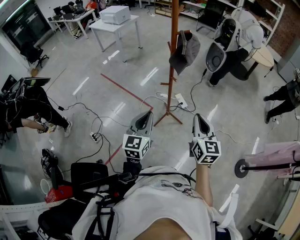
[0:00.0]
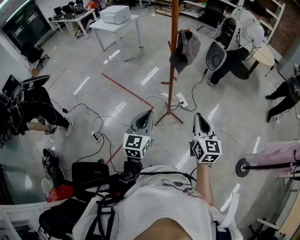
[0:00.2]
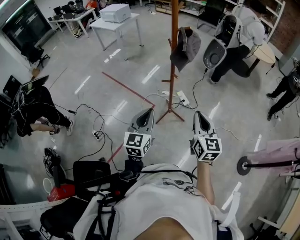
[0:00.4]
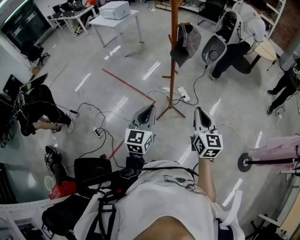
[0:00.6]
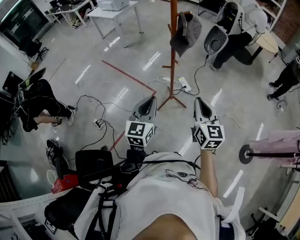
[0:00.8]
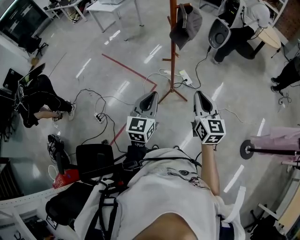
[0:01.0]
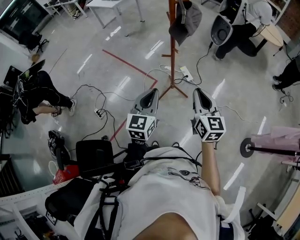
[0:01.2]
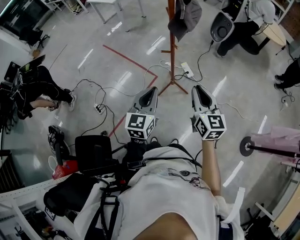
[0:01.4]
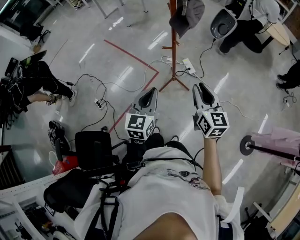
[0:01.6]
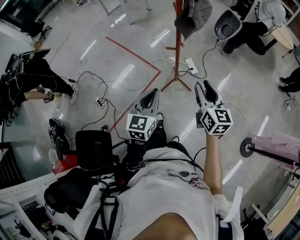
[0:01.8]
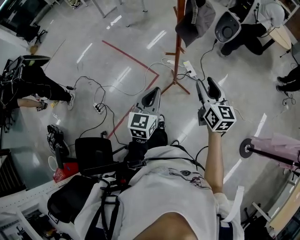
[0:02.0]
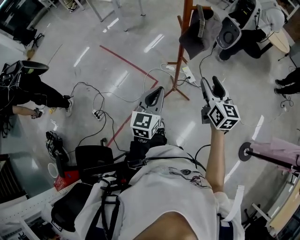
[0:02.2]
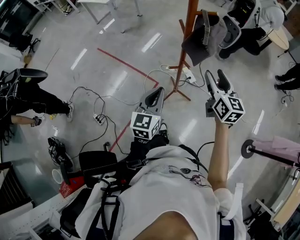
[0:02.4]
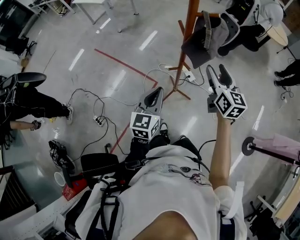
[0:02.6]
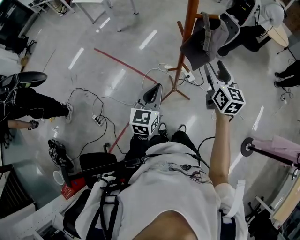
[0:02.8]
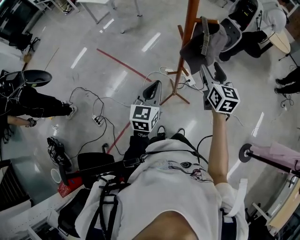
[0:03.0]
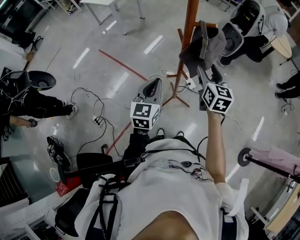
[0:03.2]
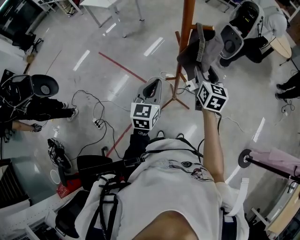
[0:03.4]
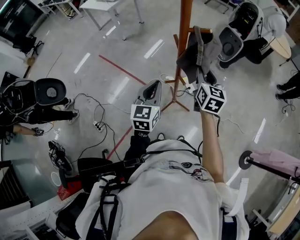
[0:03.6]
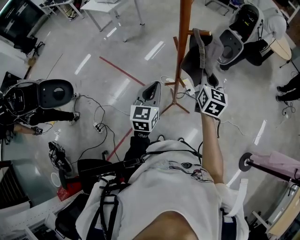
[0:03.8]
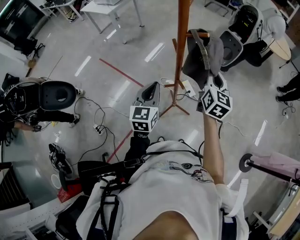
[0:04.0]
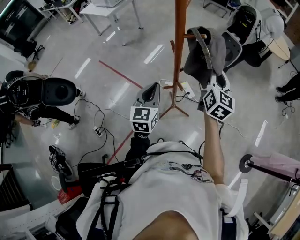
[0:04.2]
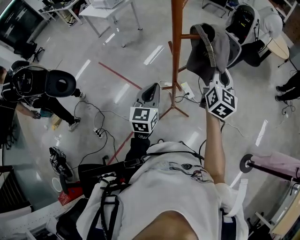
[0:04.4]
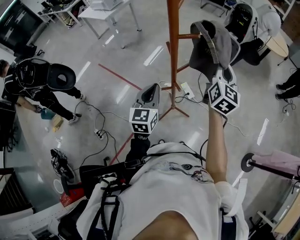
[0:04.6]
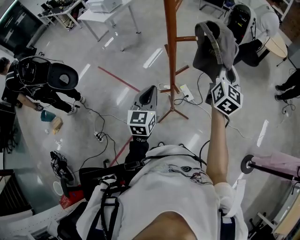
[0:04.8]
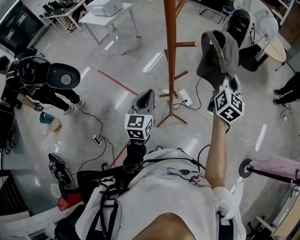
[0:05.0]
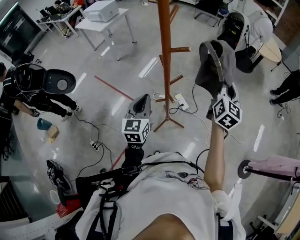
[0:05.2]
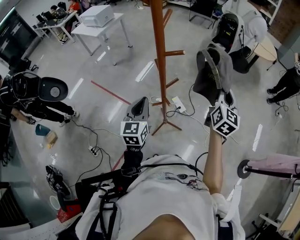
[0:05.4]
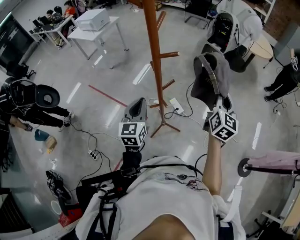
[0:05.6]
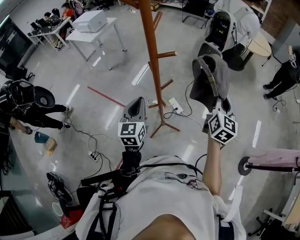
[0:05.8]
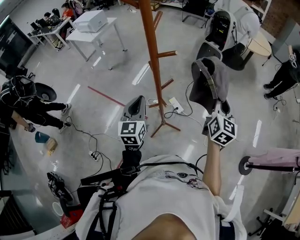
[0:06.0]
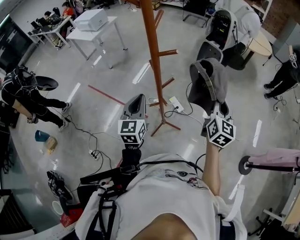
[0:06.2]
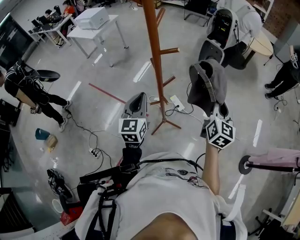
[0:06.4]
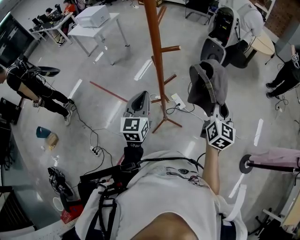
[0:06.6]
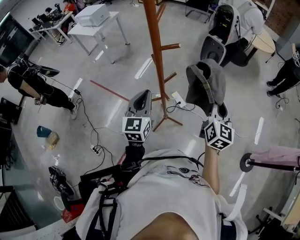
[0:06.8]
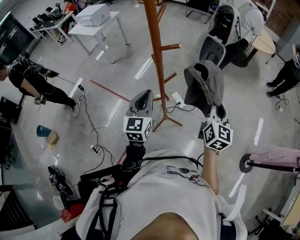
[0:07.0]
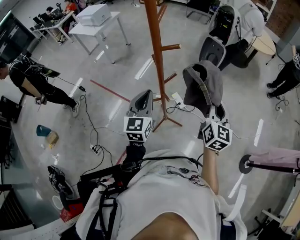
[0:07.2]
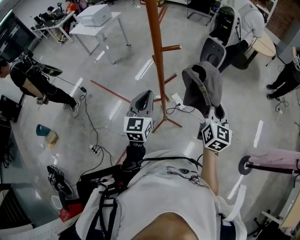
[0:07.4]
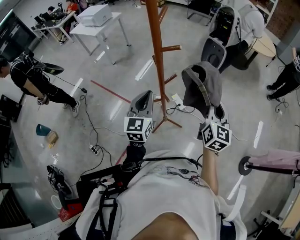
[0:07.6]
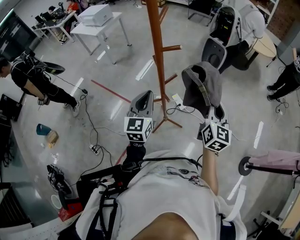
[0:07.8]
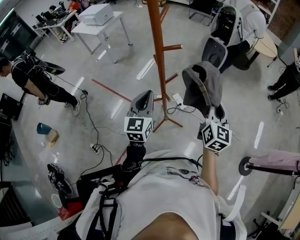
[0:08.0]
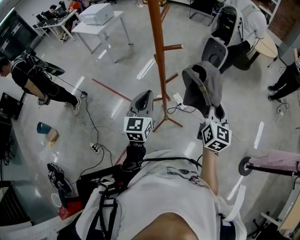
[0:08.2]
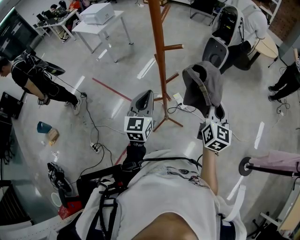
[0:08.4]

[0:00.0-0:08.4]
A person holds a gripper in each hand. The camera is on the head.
0:00.0 to 0:01.4: The left gripper moves approximately 5 cm.
0:01.4 to 0:02.8: The two grippers go approximately 25 cm forward. The right gripper opens up.
0:02.8 to 0:04.2: The two grippers go some 5 cm forward. The right gripper closes up.
0:04.2 to 0:05.6: The right gripper heads to the right, covering approximately 10 cm.
0:05.6 to 0:07.0: The right gripper shifts roughly 5 cm backward.
0:07.0 to 0:08.4: Both grippers stay put.

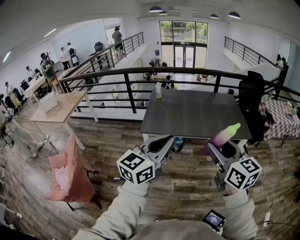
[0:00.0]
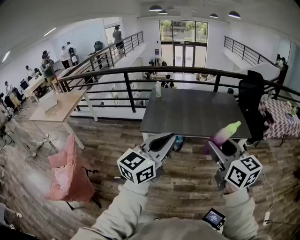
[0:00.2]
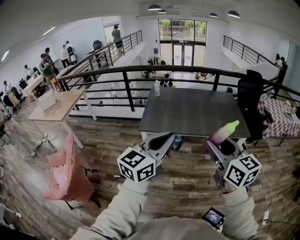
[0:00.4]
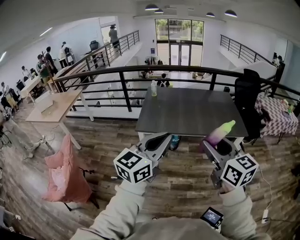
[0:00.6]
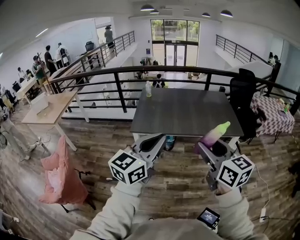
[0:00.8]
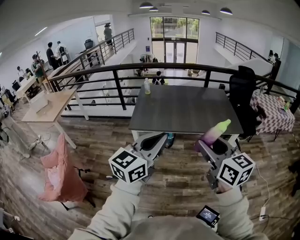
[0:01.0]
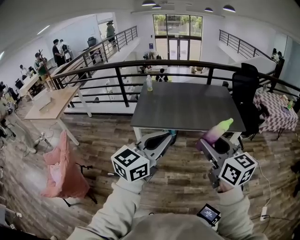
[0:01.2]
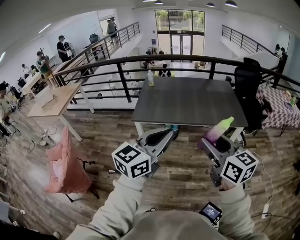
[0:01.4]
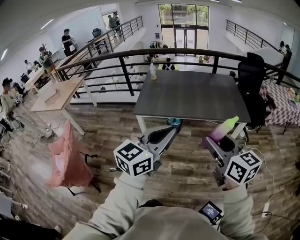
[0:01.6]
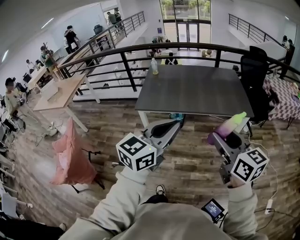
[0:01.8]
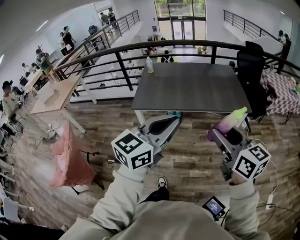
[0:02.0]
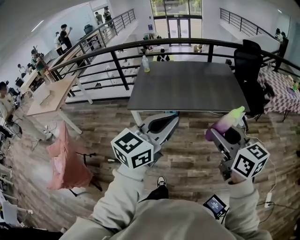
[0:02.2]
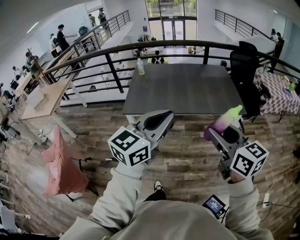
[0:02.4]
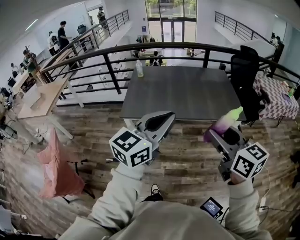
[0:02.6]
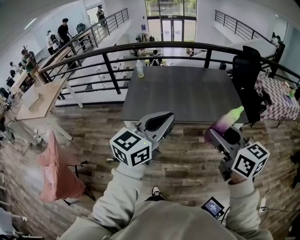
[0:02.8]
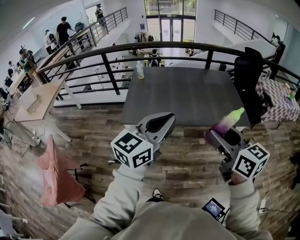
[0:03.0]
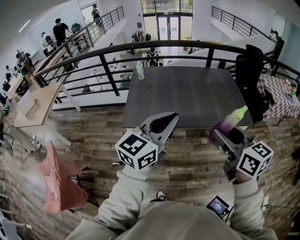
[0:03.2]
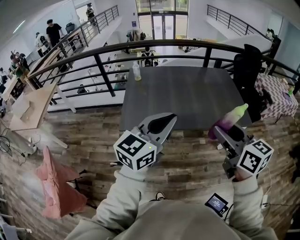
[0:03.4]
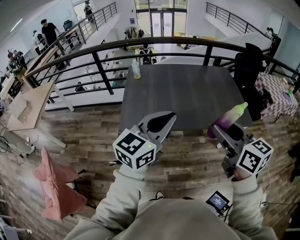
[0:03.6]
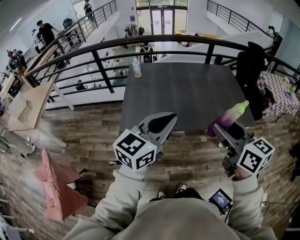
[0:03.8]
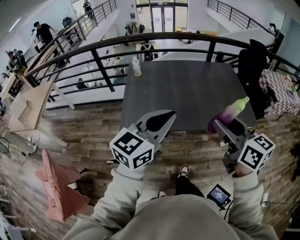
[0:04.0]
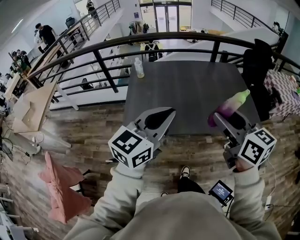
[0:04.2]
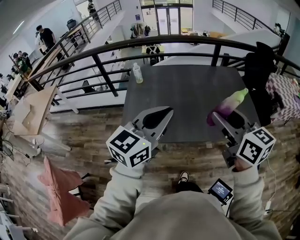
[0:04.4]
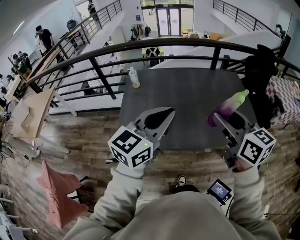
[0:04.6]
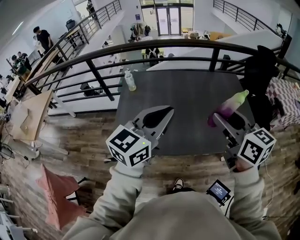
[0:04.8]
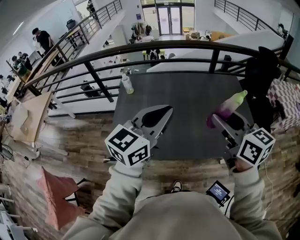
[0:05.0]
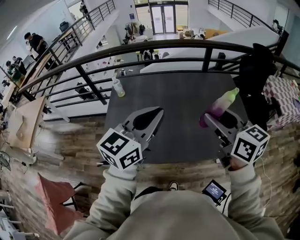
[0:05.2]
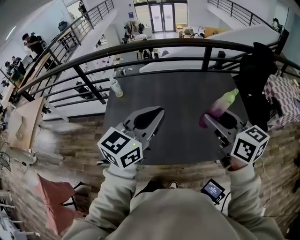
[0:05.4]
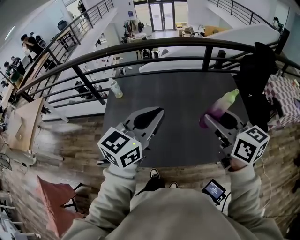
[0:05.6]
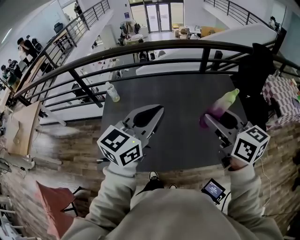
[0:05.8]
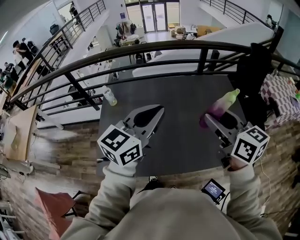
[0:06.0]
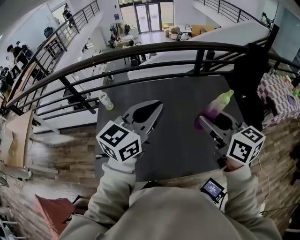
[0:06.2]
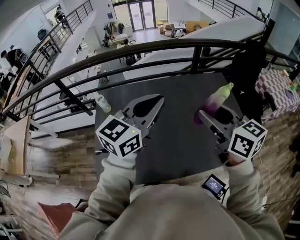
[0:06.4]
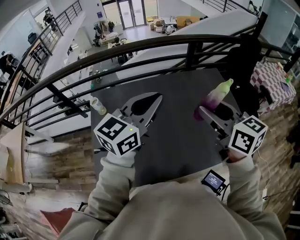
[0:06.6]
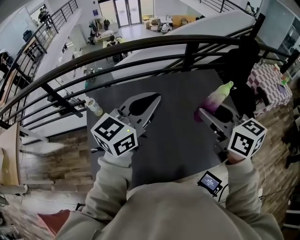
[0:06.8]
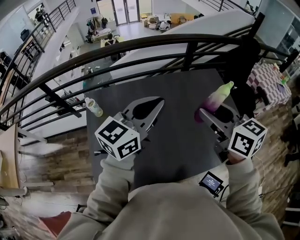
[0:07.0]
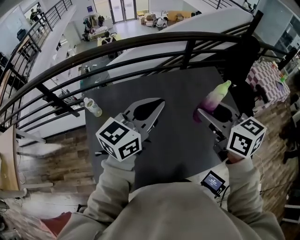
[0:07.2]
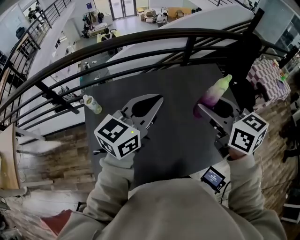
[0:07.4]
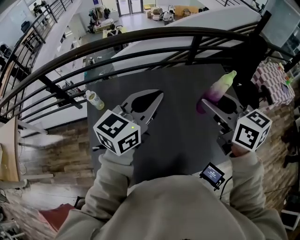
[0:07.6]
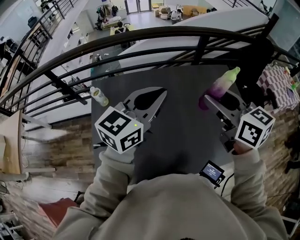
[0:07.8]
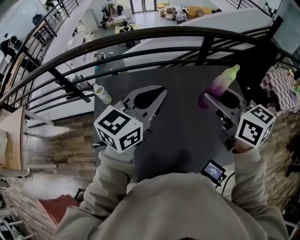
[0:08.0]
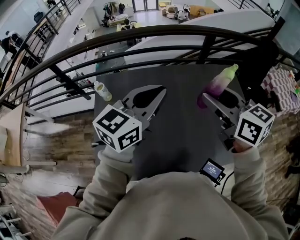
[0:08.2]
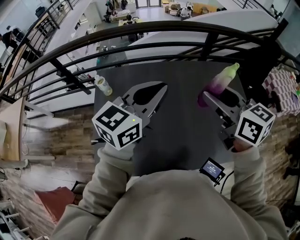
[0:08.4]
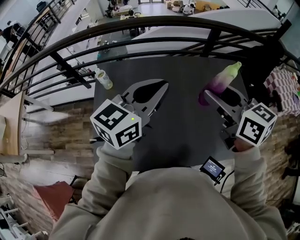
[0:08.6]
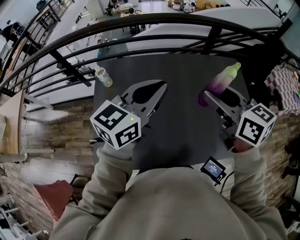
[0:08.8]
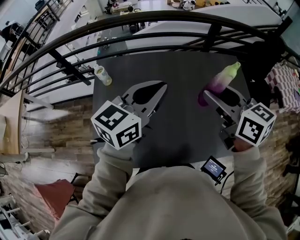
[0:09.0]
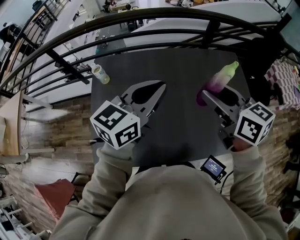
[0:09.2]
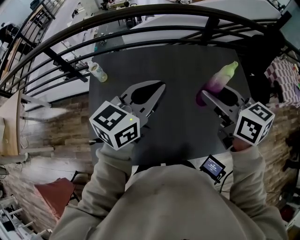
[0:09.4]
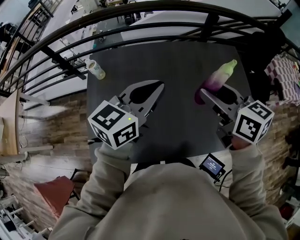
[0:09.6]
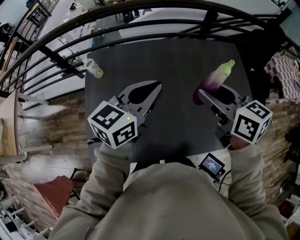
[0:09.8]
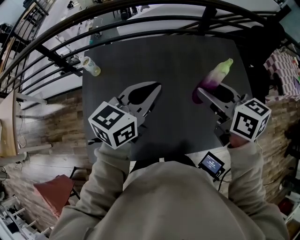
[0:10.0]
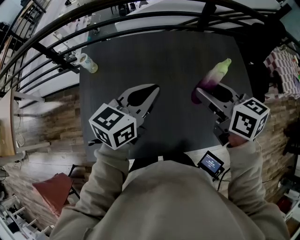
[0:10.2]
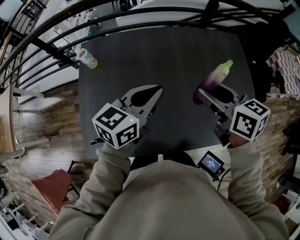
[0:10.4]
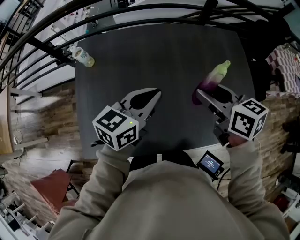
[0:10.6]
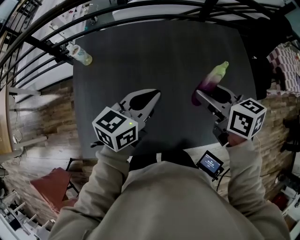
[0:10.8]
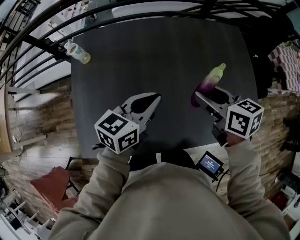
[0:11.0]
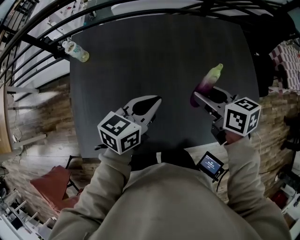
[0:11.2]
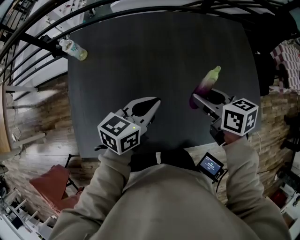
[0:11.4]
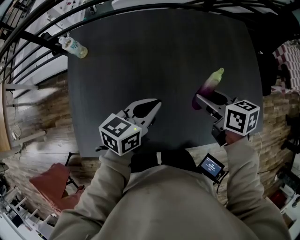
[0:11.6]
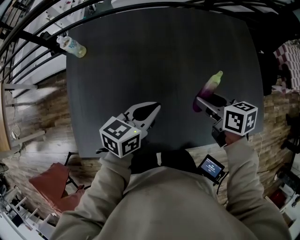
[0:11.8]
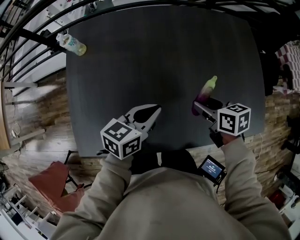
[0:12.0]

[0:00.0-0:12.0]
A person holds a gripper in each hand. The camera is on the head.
0:00.0 to 0:01.6: Both grippers move to the right, some 10 cm.
0:01.6 to 0:03.0: The two grippers go roughly 20 cm forward.
0:03.0 to 0:04.4: The two grippers go roughly 20 cm forward.
0:04.4 to 0:06.0: The grippers both shift forward by about 25 cm.
0:06.0 to 0:07.6: The right gripper travels forward and to the left by roughly 15 cm. The left gripper is displaced forward by approximately 15 cm.
0:07.6 to 0:09.0: The grippers make only small movements.
0:09.0 to 0:10.4: Both grippers travel together downward, approximately 10 cm.
0:10.4 to 0:12.0: The grippers both shift downward by some 20 cm. The right gripper swivels about 20 degrees.

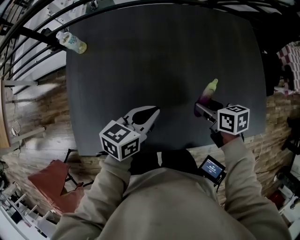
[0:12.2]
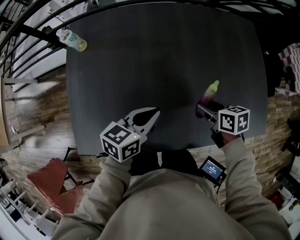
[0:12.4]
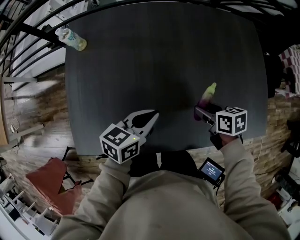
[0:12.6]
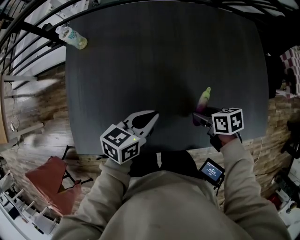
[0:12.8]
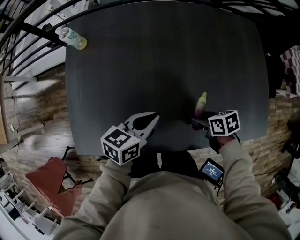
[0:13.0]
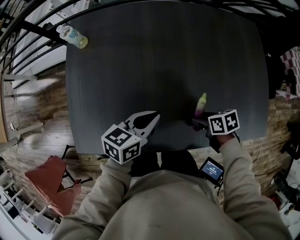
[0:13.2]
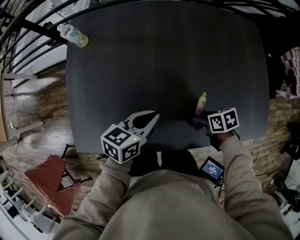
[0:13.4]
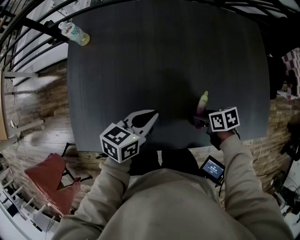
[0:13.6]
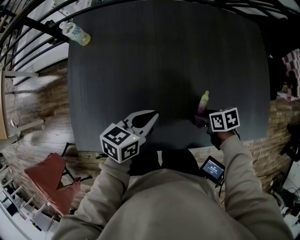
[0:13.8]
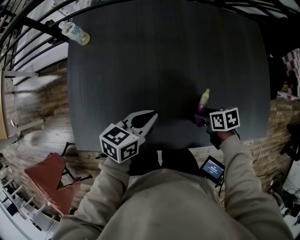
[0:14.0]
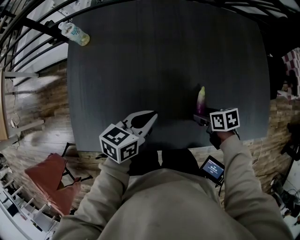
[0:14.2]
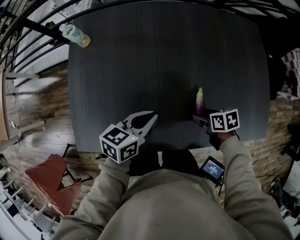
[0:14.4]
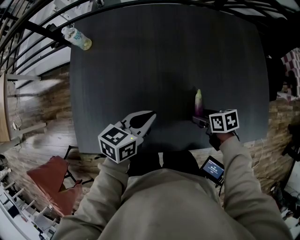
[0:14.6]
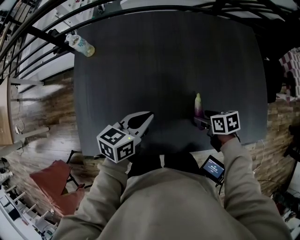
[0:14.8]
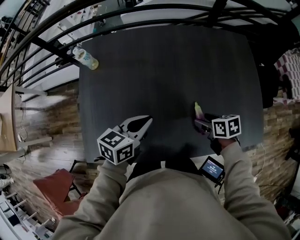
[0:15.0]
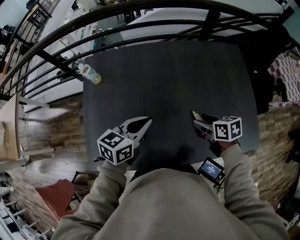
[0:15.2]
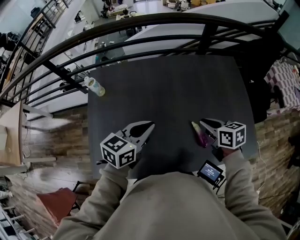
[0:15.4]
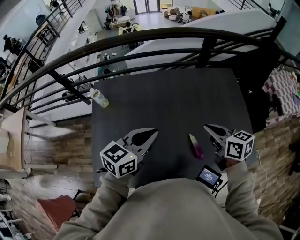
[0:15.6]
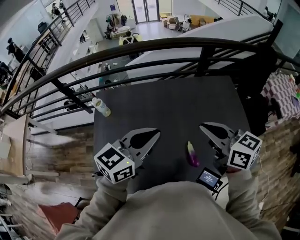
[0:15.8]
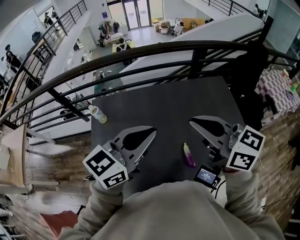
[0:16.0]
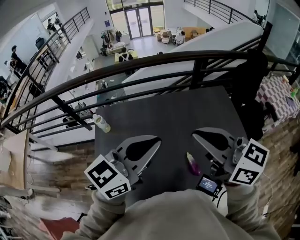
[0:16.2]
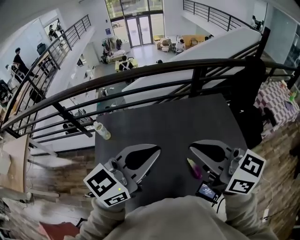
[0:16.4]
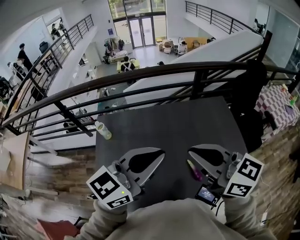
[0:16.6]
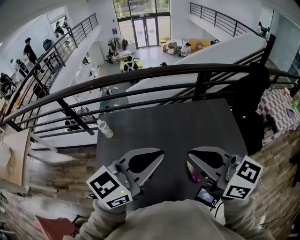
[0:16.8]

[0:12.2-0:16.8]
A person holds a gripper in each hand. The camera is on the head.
0:12.2 to 0:13.8: The right gripper goes roughly 10 cm downward.
0:13.8 to 0:15.2: The two grippers go roughly 15 cm upward. The right gripper changes its angle by roughly 20 degrees.
0:15.2 to 0:16.8: Both grippers travel together upward, about 35 cm. The right gripper tips its fingers upward by roughly 40 degrees, and closes; the left gripper swivels about 40 degrees.
